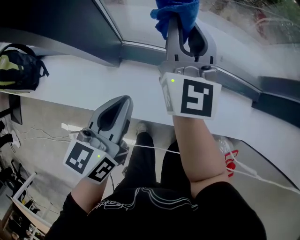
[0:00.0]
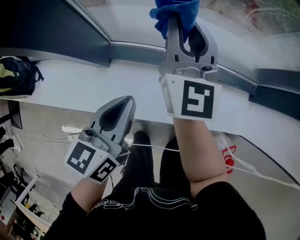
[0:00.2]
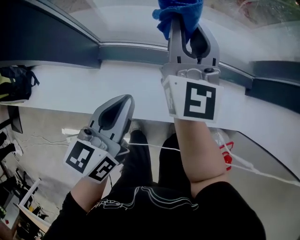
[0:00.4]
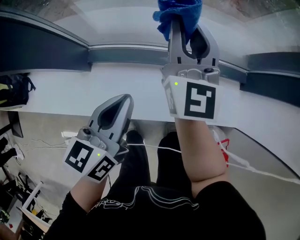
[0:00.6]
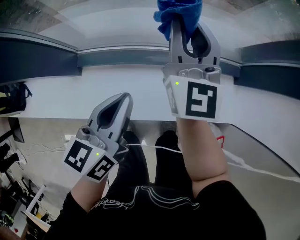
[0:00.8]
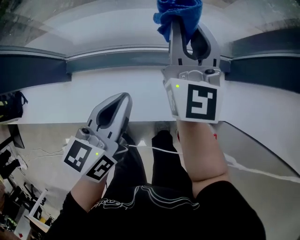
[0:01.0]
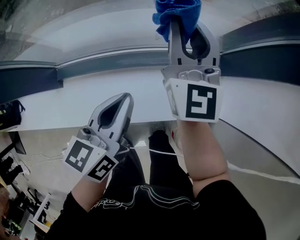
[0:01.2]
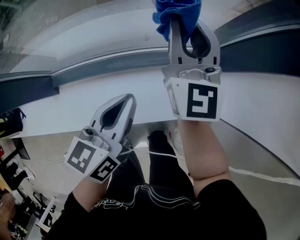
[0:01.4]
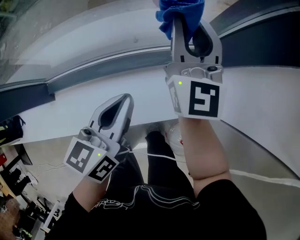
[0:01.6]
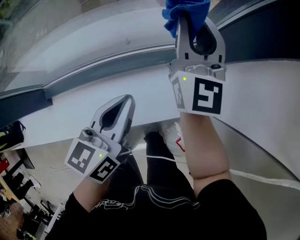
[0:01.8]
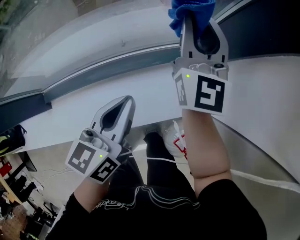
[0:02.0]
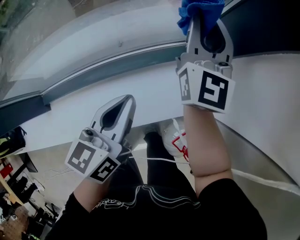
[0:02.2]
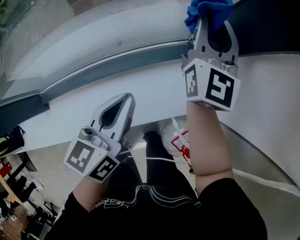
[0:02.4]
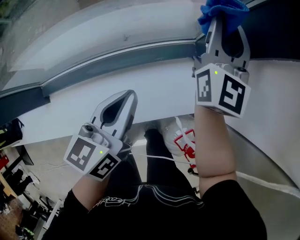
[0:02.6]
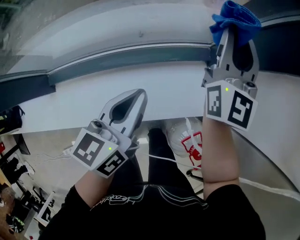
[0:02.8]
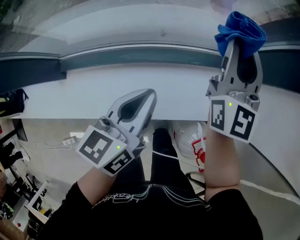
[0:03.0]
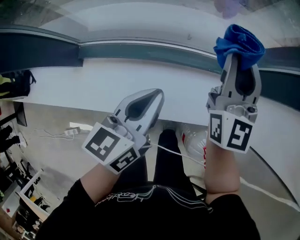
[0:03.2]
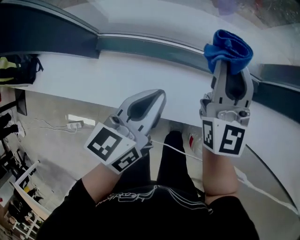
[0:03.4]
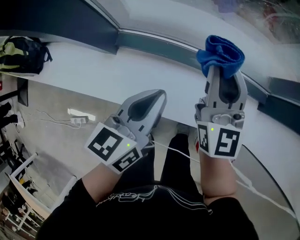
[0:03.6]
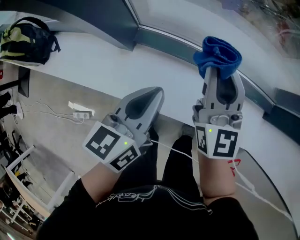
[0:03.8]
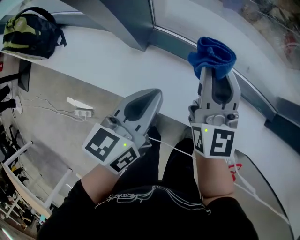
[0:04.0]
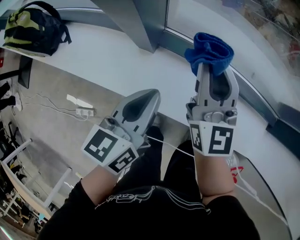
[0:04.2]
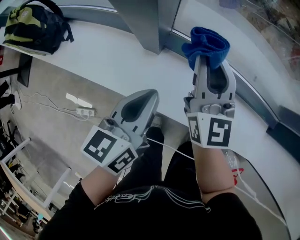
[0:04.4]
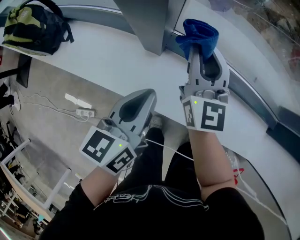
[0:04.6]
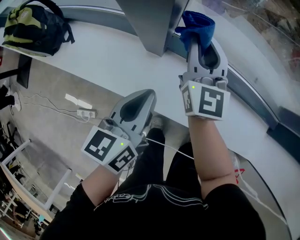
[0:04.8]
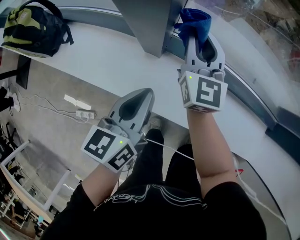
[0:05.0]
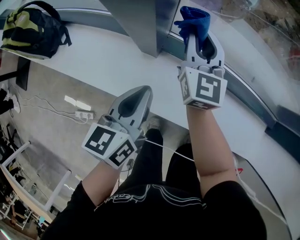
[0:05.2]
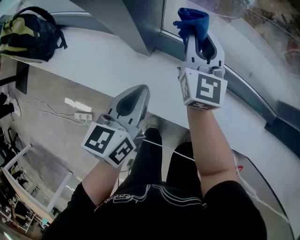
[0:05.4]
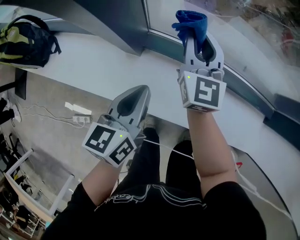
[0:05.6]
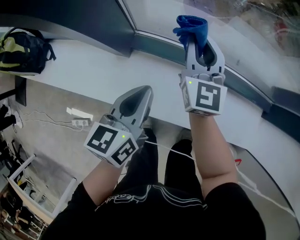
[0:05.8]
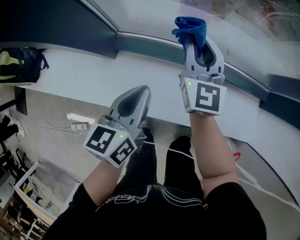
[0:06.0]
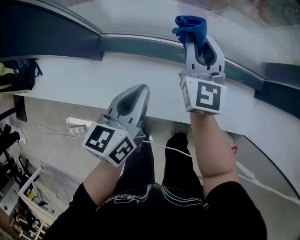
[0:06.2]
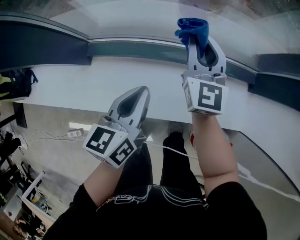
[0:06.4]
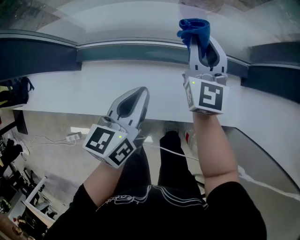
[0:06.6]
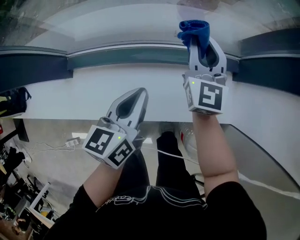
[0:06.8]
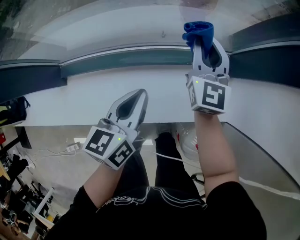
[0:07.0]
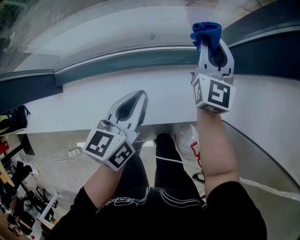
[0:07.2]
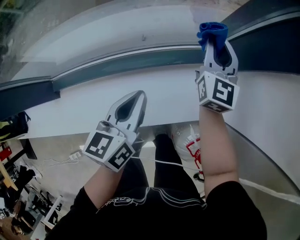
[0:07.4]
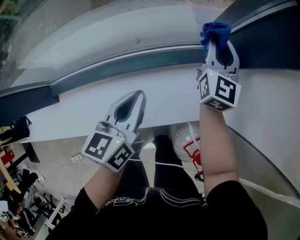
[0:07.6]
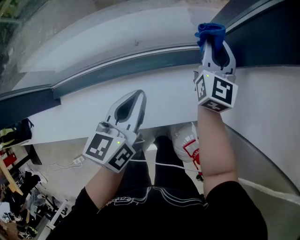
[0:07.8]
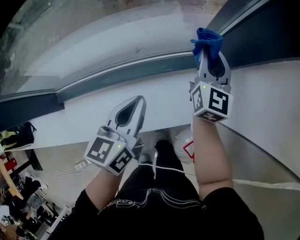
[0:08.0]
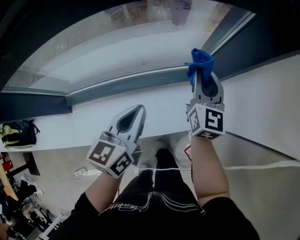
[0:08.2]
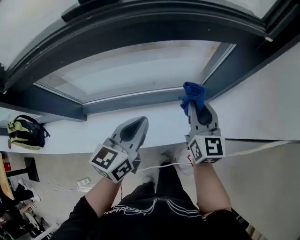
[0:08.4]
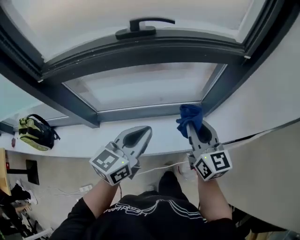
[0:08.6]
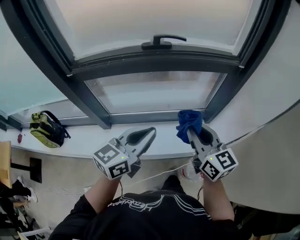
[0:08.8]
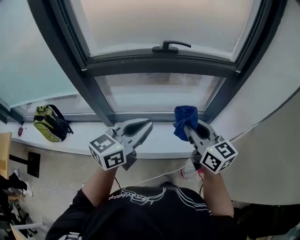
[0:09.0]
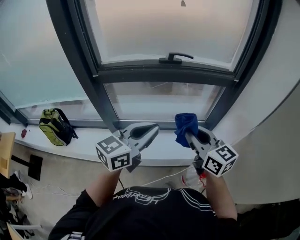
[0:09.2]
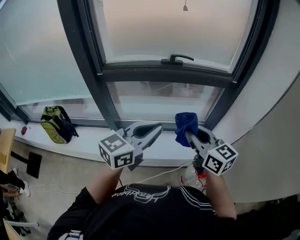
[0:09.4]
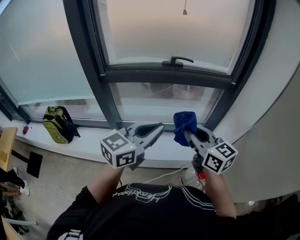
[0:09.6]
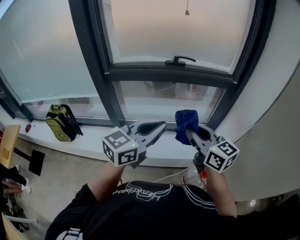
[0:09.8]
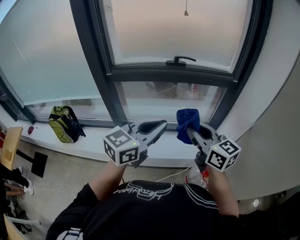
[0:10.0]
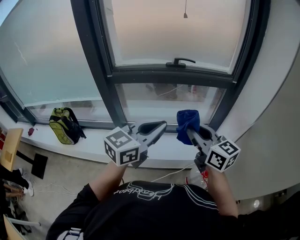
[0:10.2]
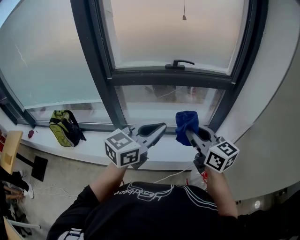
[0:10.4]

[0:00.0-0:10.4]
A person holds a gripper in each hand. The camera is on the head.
0:00.0 to 0:01.4: The grippers both shift to the right by roughly 40 cm.
0:01.4 to 0:03.0: The left gripper reaches roughly 10 cm to the right, then returns. The right gripper is displaced to the right by approximately 5 cm.
0:03.0 to 0:04.4: The two grippers travel together, roughly 50 cm. The left gripper turns by approximately 30 degrees; the right gripper changes its angle by about 40 degrees.
0:04.4 to 0:06.0: Both grippers travel together to the right, approximately 20 cm.
0:06.0 to 0:07.4: Both grippers travel together to the right, some 40 cm. The right gripper changes its angle by approximately 30 degrees.
0:07.4 to 0:09.0: The right gripper travels backward and upward by some 60 cm, and swivels approximately 40 degrees. The left gripper goes roughly 60 cm upward and backward, and turns by roughly 30 degrees.
0:09.0 to 0:10.4: Both grippers move backward and upward, about 10 cm.

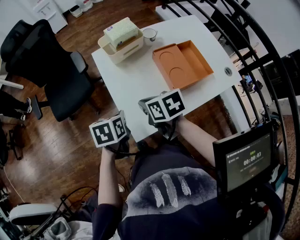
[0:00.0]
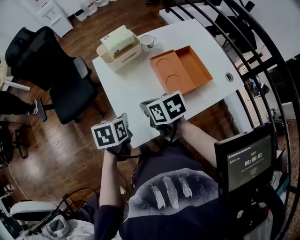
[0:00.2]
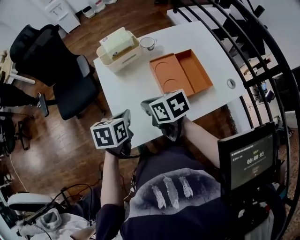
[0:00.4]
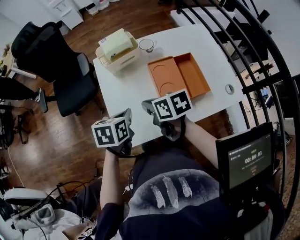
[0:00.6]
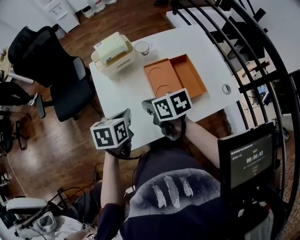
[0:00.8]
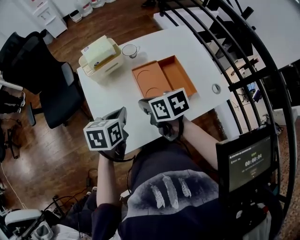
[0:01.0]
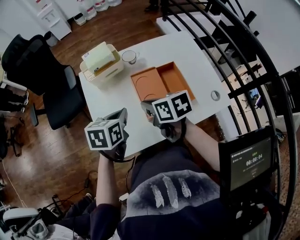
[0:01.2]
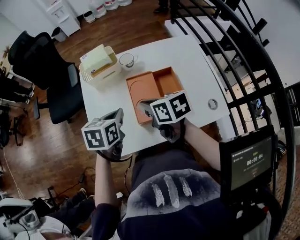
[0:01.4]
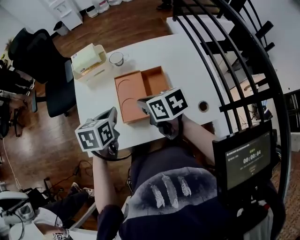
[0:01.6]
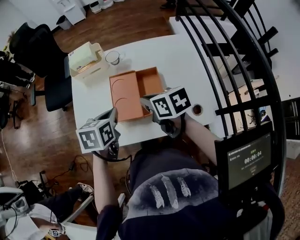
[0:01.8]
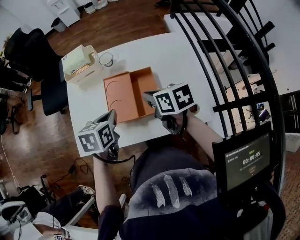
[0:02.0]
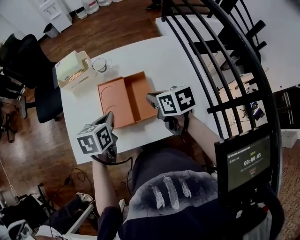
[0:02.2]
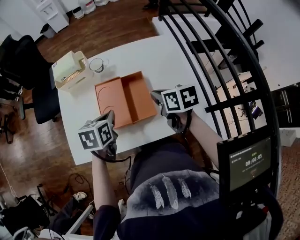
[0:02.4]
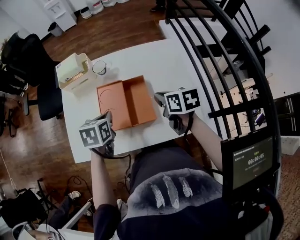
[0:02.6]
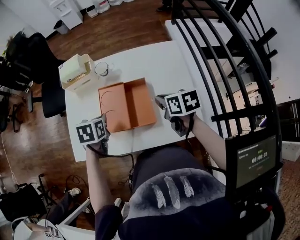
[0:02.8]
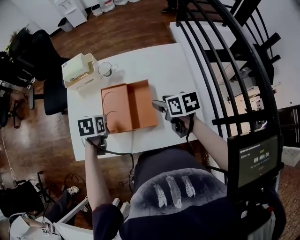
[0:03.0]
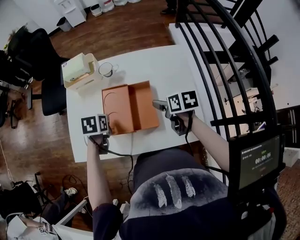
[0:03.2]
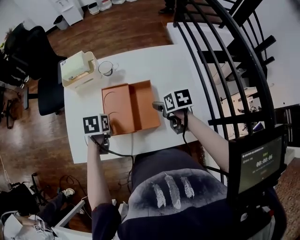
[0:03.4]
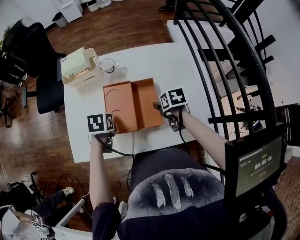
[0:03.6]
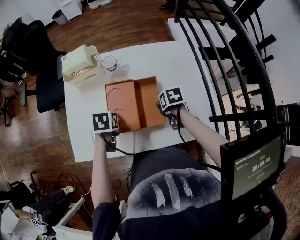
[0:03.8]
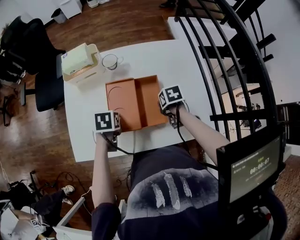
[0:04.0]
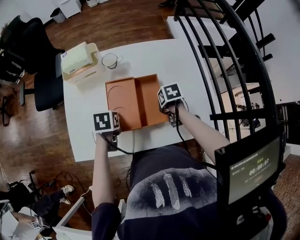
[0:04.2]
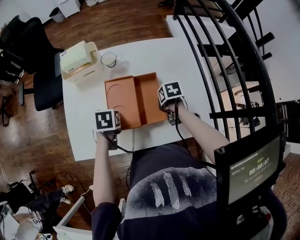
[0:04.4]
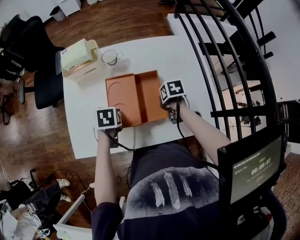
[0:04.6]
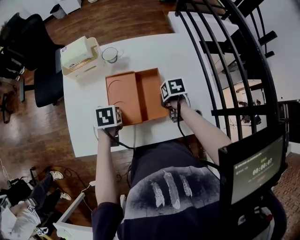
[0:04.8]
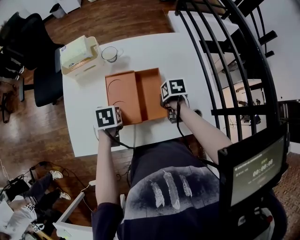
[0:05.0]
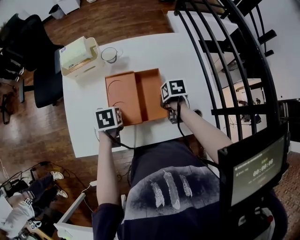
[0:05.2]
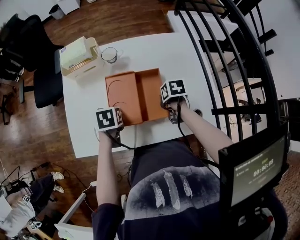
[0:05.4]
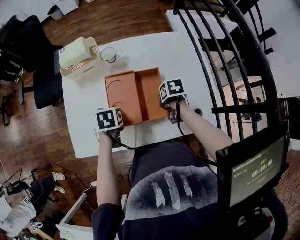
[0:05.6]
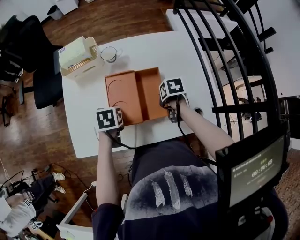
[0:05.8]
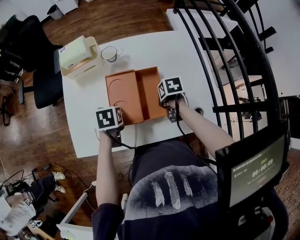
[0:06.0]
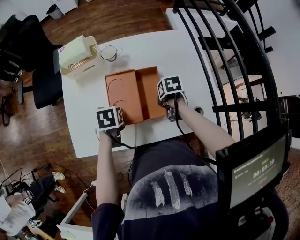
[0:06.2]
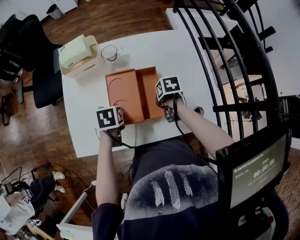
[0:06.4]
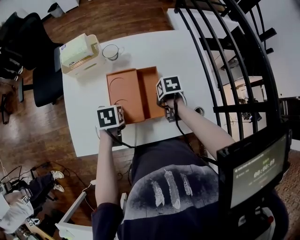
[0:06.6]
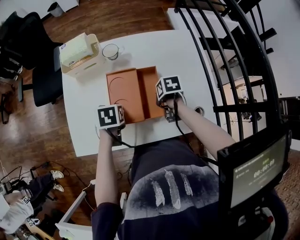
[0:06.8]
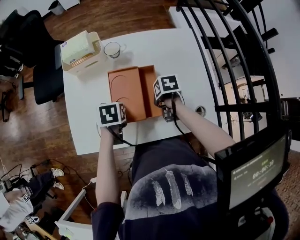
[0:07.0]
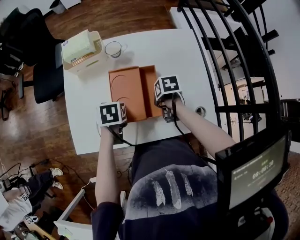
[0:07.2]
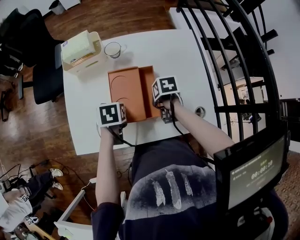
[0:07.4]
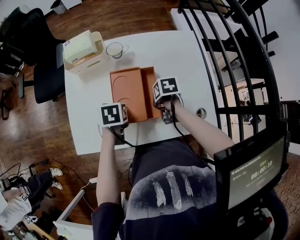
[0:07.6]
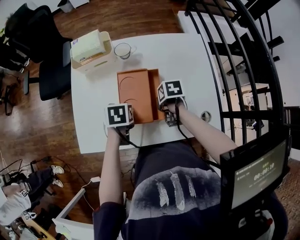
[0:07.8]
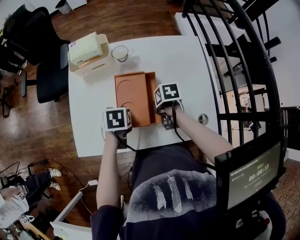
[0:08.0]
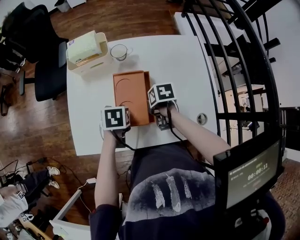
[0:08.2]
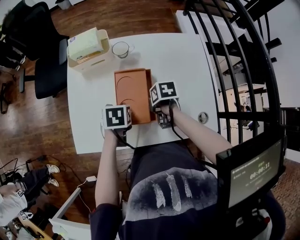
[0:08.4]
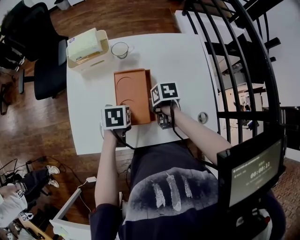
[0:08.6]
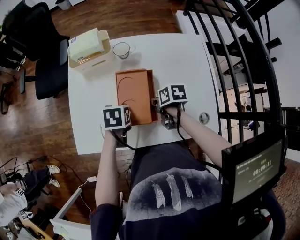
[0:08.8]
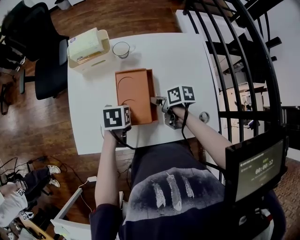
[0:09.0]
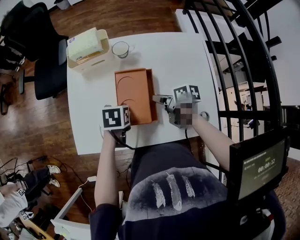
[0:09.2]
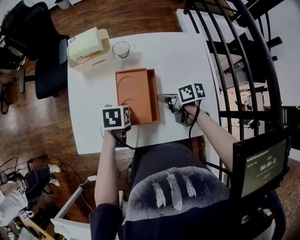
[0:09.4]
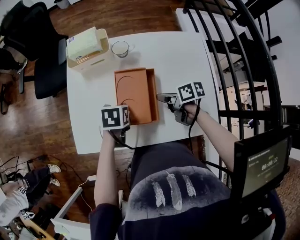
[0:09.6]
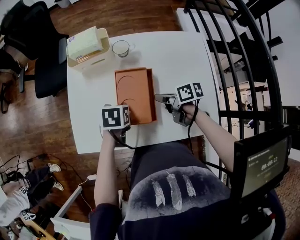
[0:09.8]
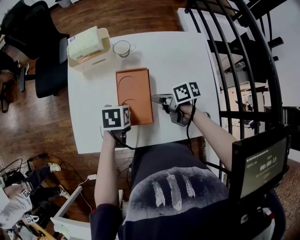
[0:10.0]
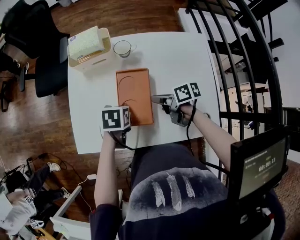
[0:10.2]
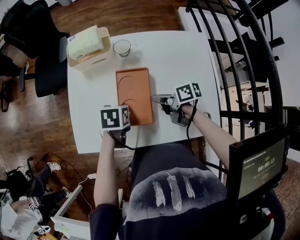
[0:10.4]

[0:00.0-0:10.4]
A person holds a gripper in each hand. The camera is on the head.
0:00.0 to 0:01.4: The left gripper moves some 25 cm.
0:01.4 to 0:03.0: The left gripper moves about 10 cm, and swivels about 20 degrees.
0:03.0 to 0:04.4: The left gripper moves downward, some 5 cm.

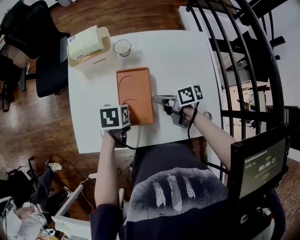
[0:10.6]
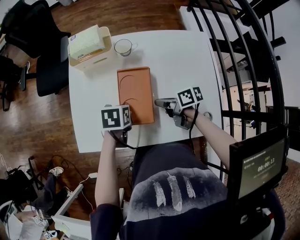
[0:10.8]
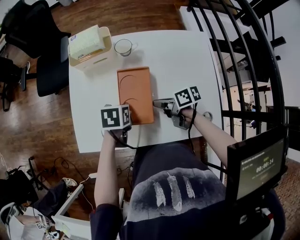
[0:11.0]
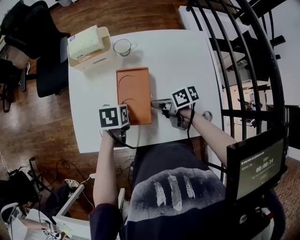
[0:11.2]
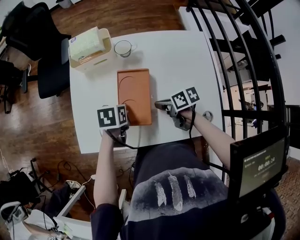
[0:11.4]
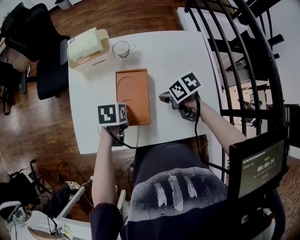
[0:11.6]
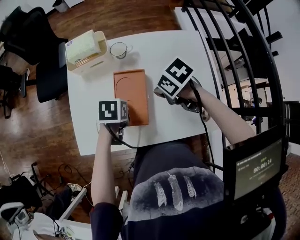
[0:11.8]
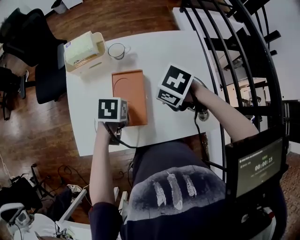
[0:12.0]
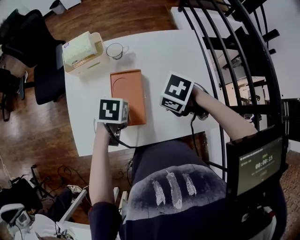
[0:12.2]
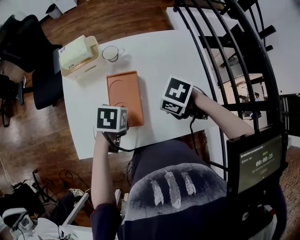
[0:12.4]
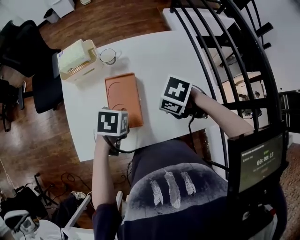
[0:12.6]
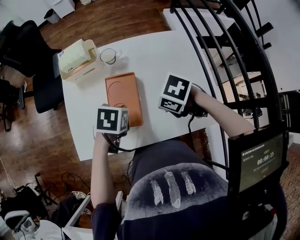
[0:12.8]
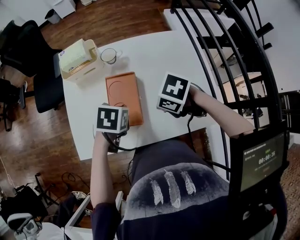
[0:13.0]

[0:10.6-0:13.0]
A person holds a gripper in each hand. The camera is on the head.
0:11.8 to 0:13.0: The left gripper shifts by about 5 cm.

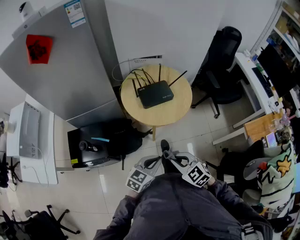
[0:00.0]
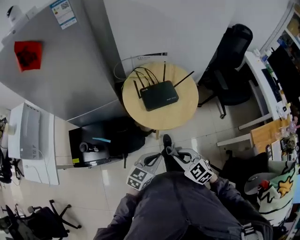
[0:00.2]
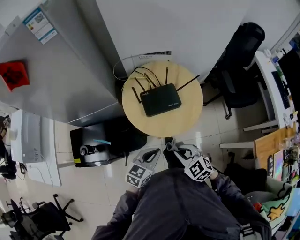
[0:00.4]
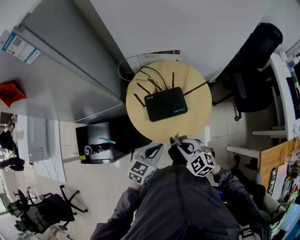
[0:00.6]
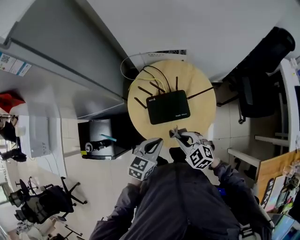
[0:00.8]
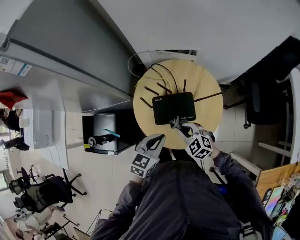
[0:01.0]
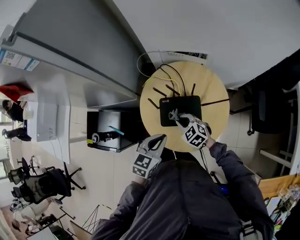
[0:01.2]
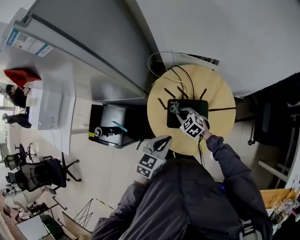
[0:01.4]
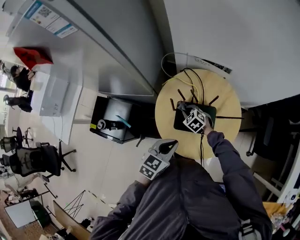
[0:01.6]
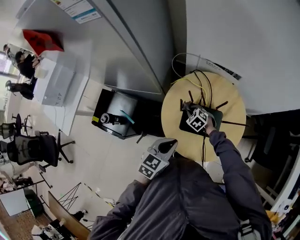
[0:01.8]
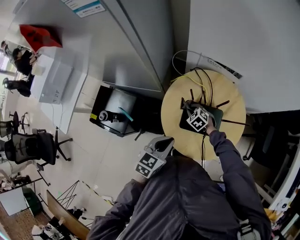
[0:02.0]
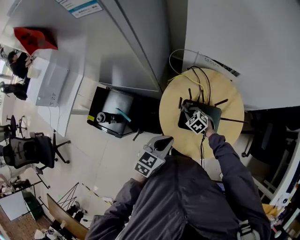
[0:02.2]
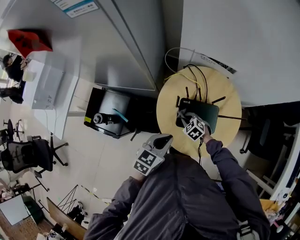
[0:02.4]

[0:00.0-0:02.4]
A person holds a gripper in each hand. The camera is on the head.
0:00.0 to 0:01.2: The left gripper changes place by approximately 35 cm, and swivels roughly 30 degrees; the right gripper changes place by roughly 40 cm.
0:01.2 to 0:02.4: The left gripper moves to the left, approximately 5 cm. The right gripper is displaced downward and to the left by roughly 10 cm, and reaches some 10 cm forward, then returns.
